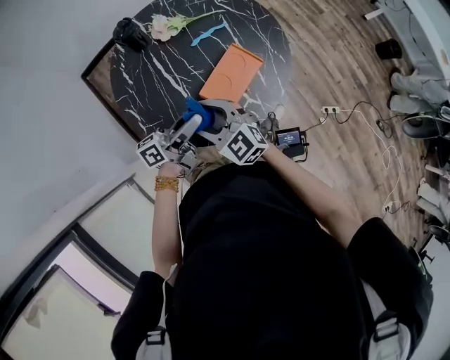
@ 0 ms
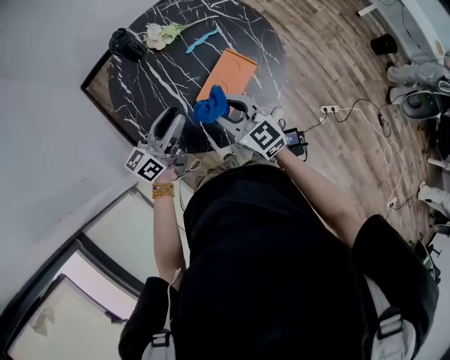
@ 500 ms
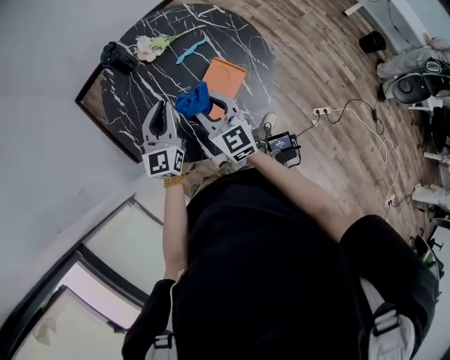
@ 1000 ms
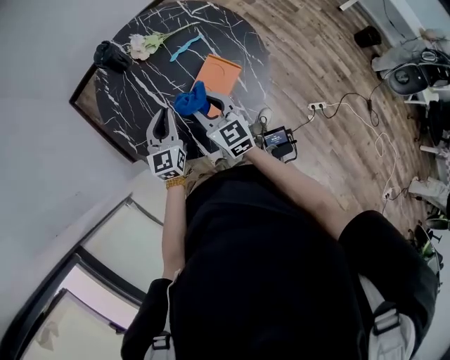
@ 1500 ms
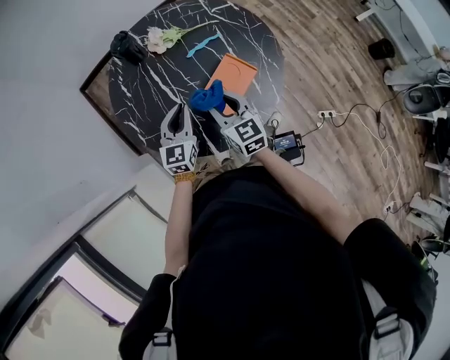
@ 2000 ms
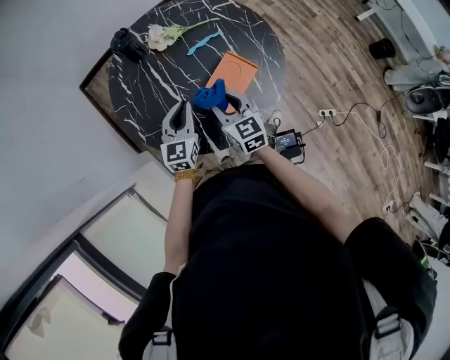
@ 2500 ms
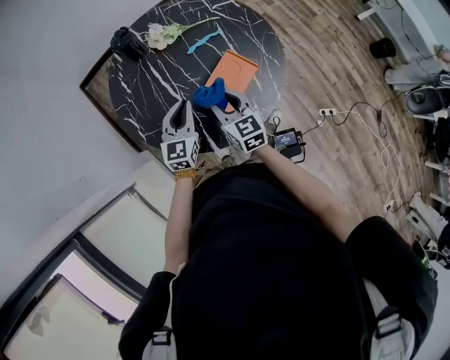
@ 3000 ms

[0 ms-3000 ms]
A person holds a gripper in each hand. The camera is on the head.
0 ms to 1500 ms: The right gripper goes some 10 cm to the right and forward, rotates approximately 30 degrees, and closes up. Meanwhile the left gripper travels forward by approximately 5 cm, turns by about 70 degrees, and closes its fingers.
1500 ms to 3000 ms: The grippers move only a little.

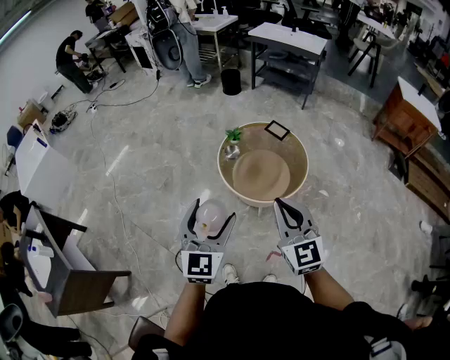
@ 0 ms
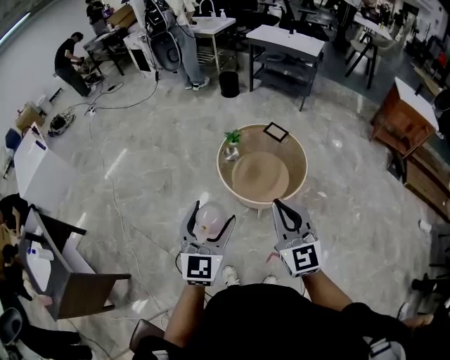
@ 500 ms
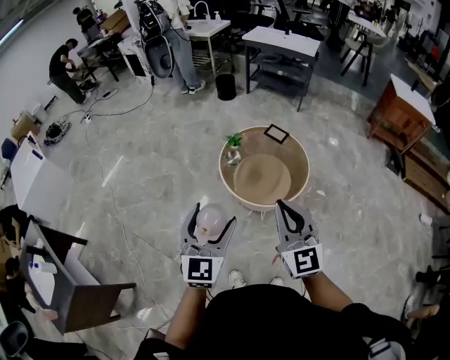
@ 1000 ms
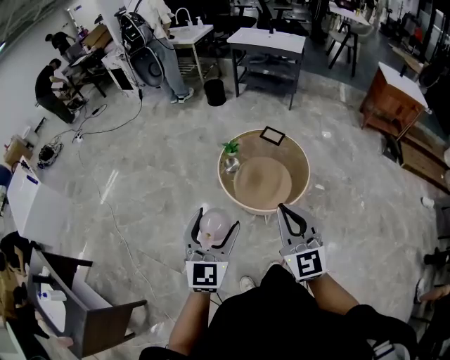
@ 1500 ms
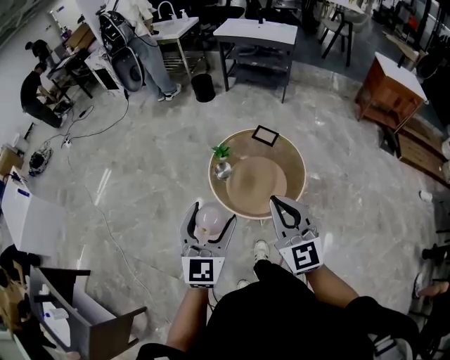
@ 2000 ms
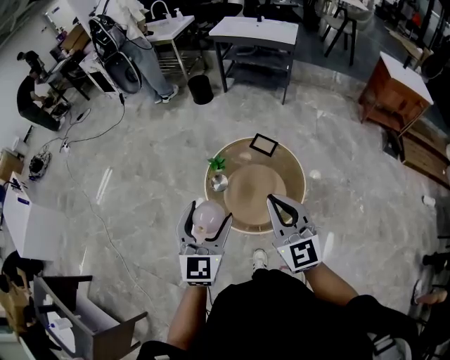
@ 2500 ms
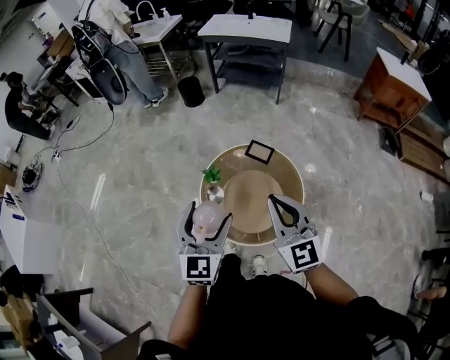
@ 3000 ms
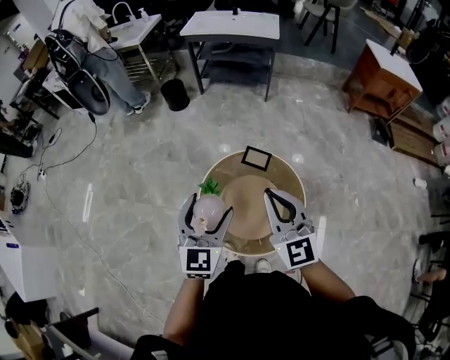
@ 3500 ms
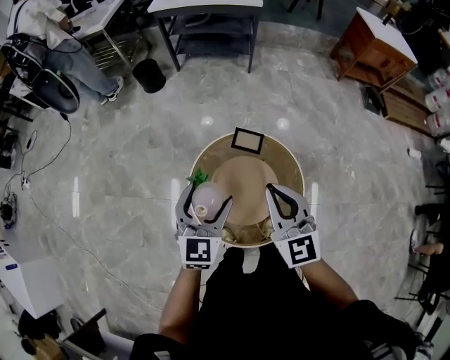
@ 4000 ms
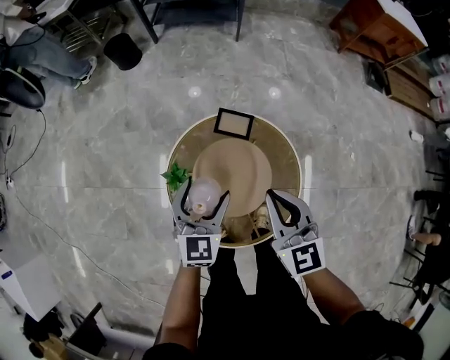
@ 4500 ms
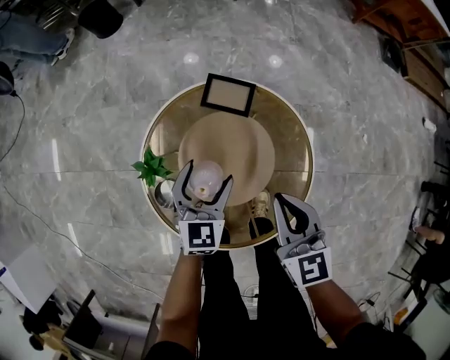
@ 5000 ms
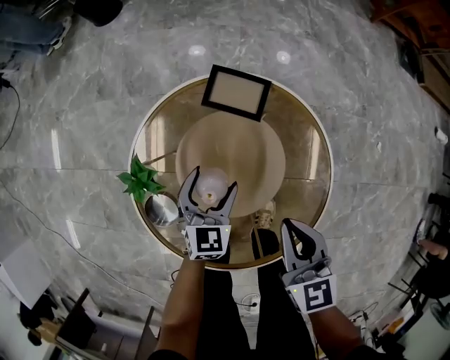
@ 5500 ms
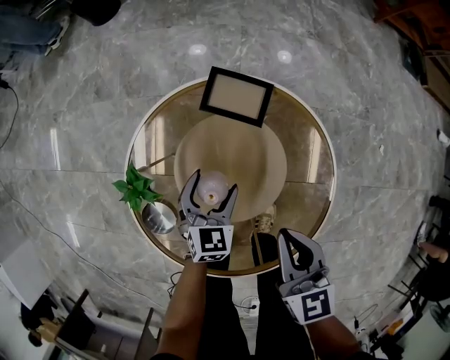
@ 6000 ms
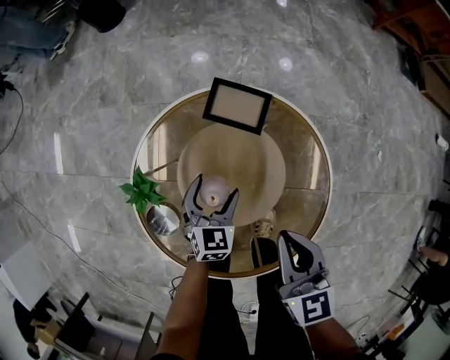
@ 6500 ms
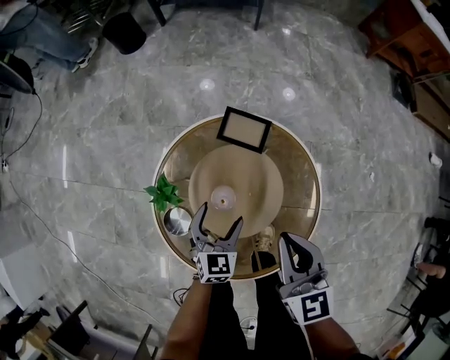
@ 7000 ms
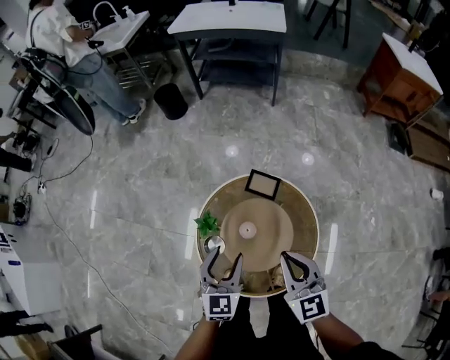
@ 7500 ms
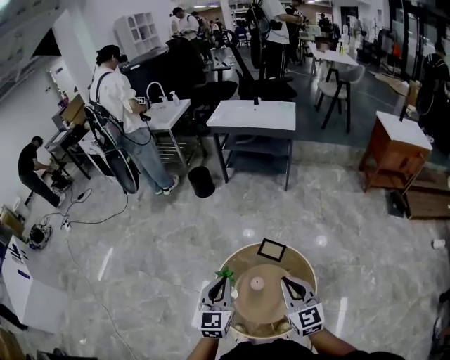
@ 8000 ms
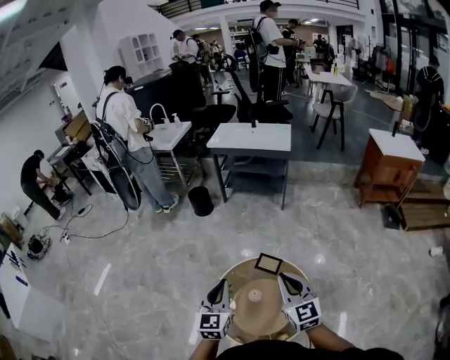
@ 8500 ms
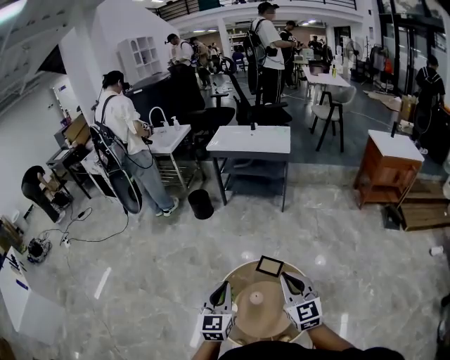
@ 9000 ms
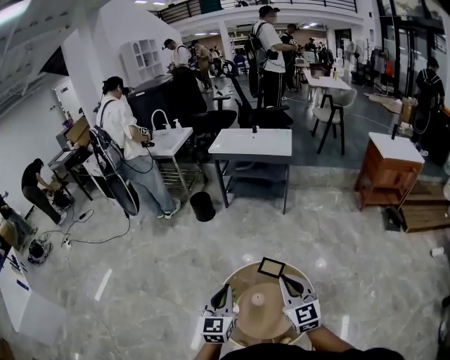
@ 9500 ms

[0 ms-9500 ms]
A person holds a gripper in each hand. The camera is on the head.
0 ms to 2000 ms: The two grippers go approximately 15 cm forward.
2000 ms to 4000 ms: The two grippers go approximately 35 cm forward. The left gripper changes its angle by about 20 degrees.
4000 ms to 5500 ms: The two grippers go some 40 cm downward. The right gripper changes its angle by about 30 degrees.
5500 ms to 7500 ms: The two grippers go roughly 30 cm upward. The right gripper turns by some 20 degrees.
7500 ms to 9500 ms: The grippers both shift upward by about 20 cm. The left gripper closes up.

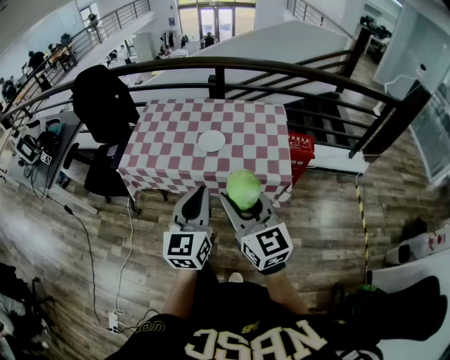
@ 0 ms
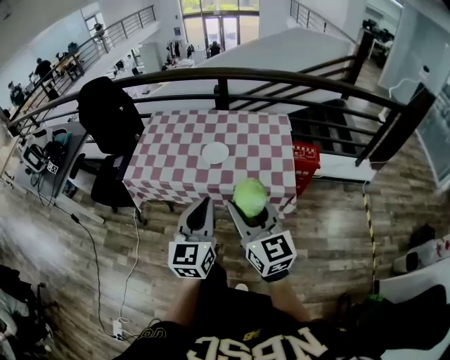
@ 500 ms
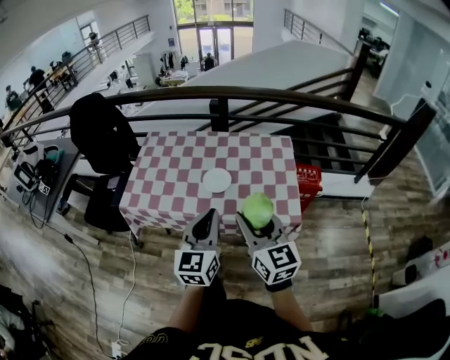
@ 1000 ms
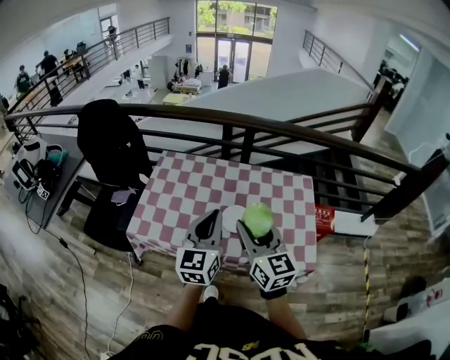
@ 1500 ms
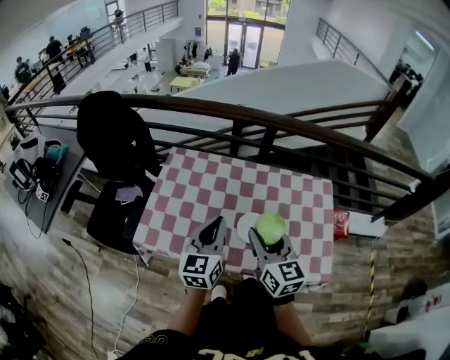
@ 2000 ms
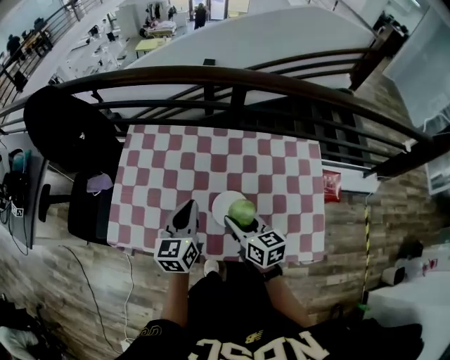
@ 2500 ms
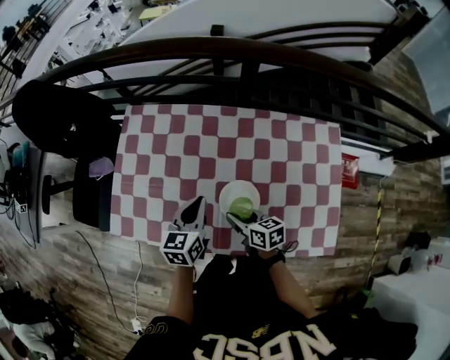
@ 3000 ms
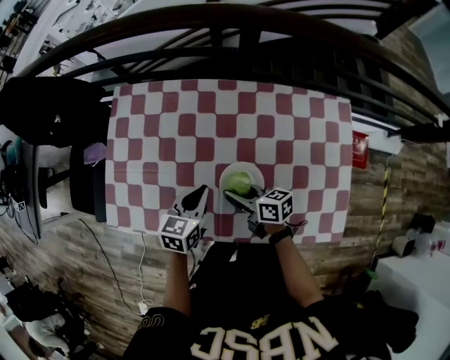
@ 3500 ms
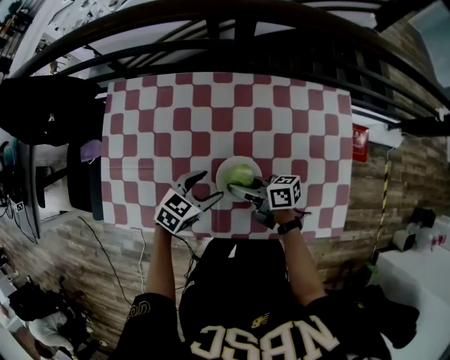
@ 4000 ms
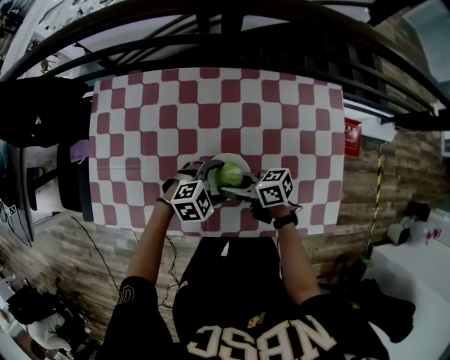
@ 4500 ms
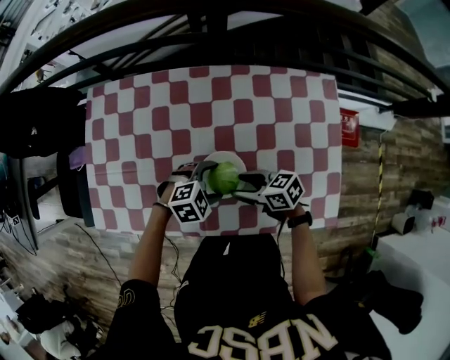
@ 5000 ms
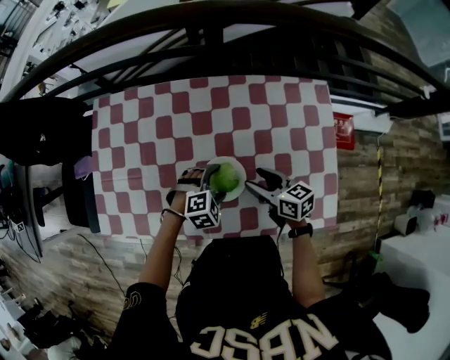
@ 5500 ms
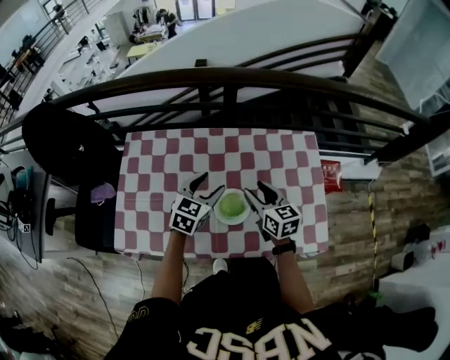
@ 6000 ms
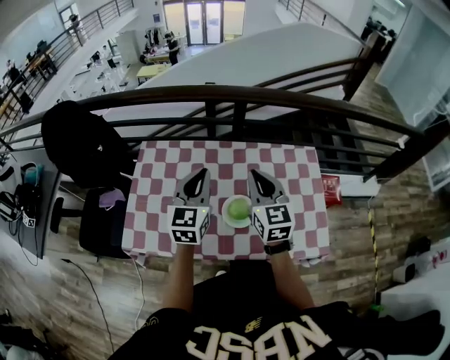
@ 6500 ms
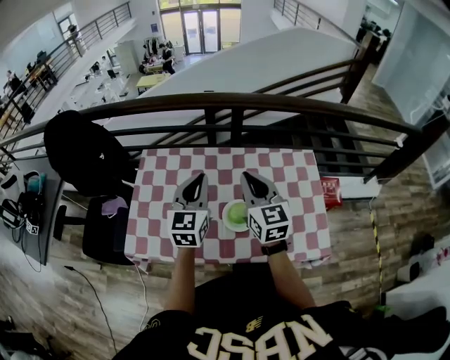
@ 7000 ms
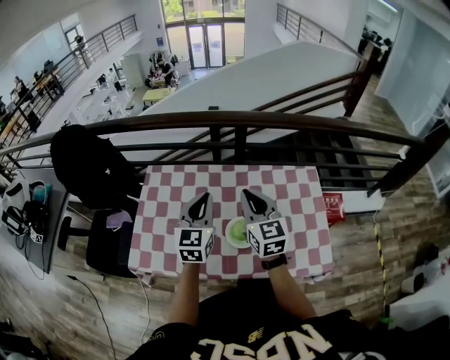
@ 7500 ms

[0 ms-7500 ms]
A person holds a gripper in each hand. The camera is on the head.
0 ms to 2000 ms: Both grippers travel together forward, roughly 35 cm.
2000 ms to 4000 ms: The grippers both shift downward by roughly 30 cm. The left gripper points its fingers some 30 degrees further downward, and opens its fingers; the right gripper swivels some 60 degrees.
4000 ms to 5500 ms: The right gripper ends up some 10 cm from where it was, changes its angle by approximately 30 degrees, and opens its fingers; the left gripper moves about 10 cm, and twists some 40 degrees clockwise, seen from behind.
5500 ms to 7500 ms: Both grippers move upward, some 30 cm. The right gripper changes its angle by roughly 50 degrees, and closes. Meanwhile the left gripper tilts its fingers some 50 degrees upward, and closes up.

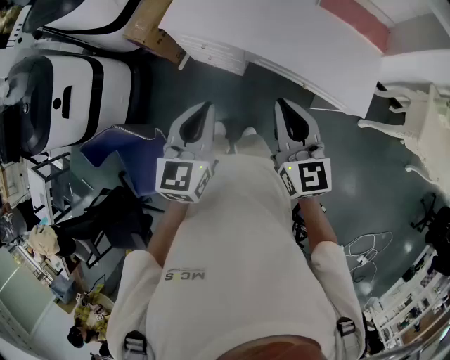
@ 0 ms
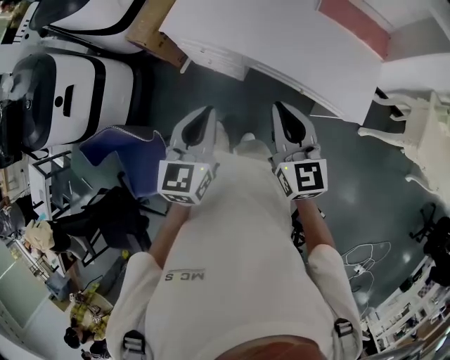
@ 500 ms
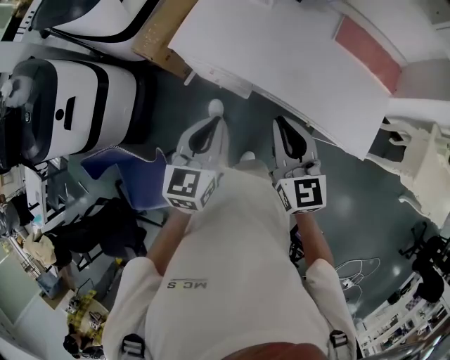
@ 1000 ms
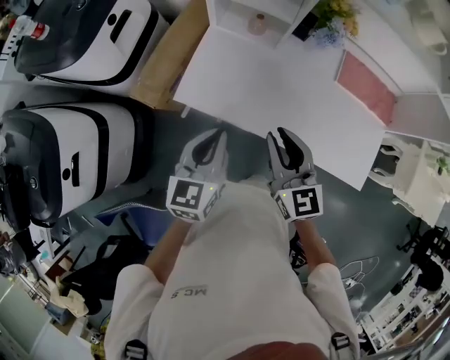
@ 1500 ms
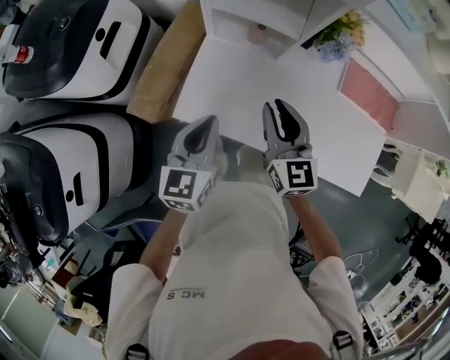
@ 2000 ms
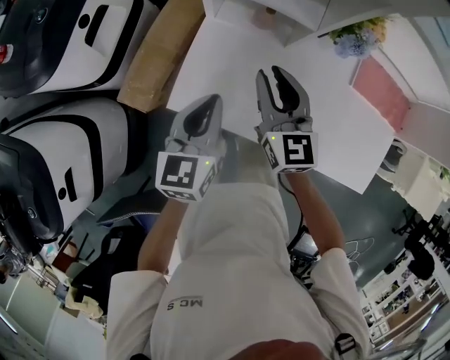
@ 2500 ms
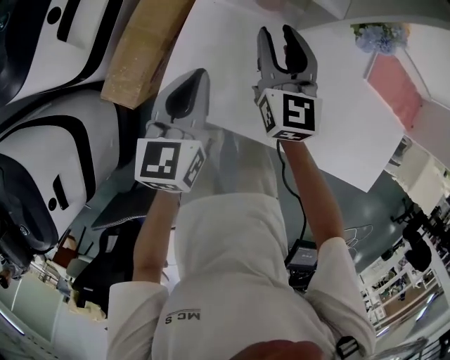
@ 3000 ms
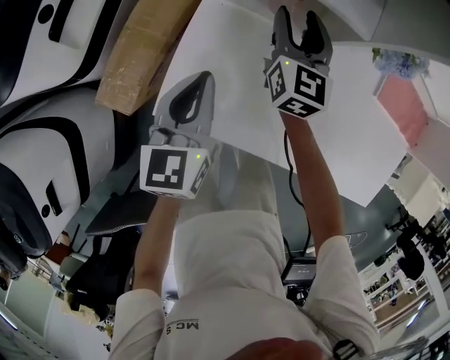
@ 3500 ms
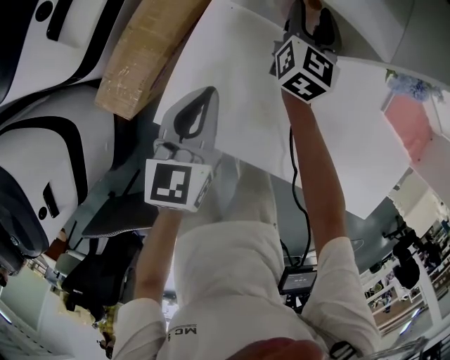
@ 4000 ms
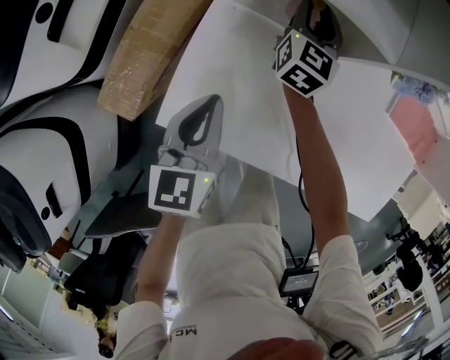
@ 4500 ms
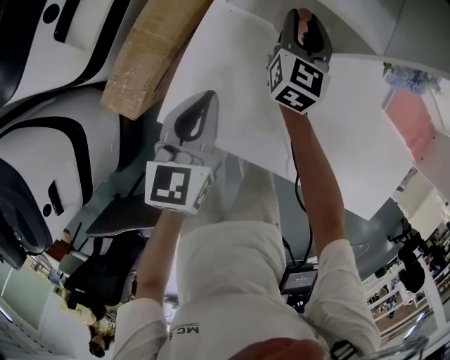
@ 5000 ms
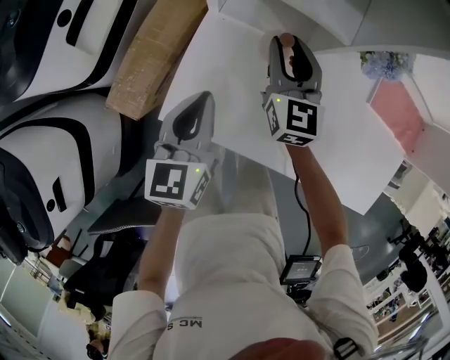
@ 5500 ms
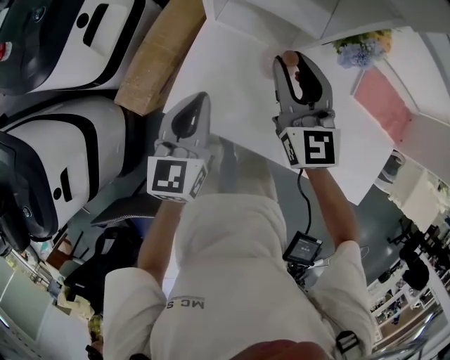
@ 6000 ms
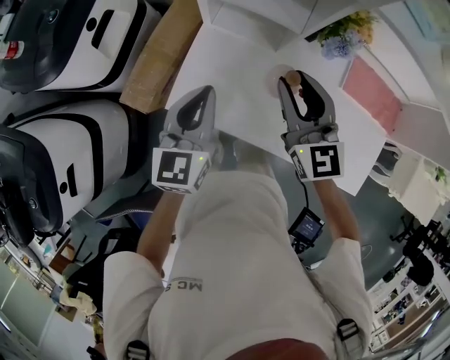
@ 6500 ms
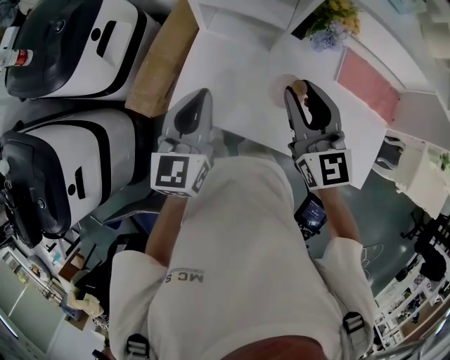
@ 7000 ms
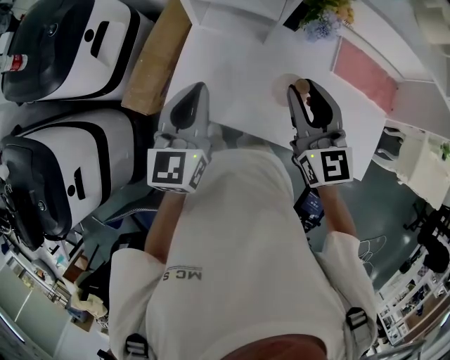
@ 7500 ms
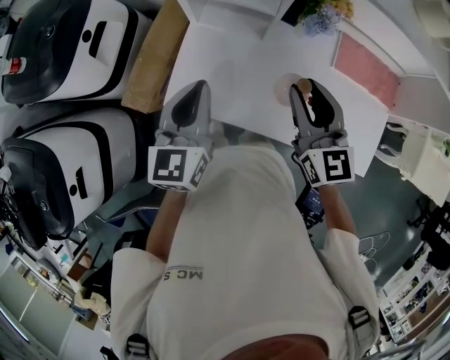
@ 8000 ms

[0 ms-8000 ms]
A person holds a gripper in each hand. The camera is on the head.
0 ms to 2000 ms: The pair of grippers is taken forward, some 50 cm.
2000 ms to 4000 ms: The right gripper shifts some 35 cm forward and downward, swivels some 20 degrees, and opens its fingers, while the left gripper heads downward and forward, covering approximately 20 cm.
4000 ms to 6000 ms: The left gripper travels upward by roughly 15 cm; the right gripper travels upward and backward by roughly 30 cm, and turns by roughly 30 degrees.
6000 ms to 8000 ms: The left gripper shifts some 15 cm upward, to the right and backward. Meanwhile the right gripper travels backward, to the right and upward by about 20 cm.
